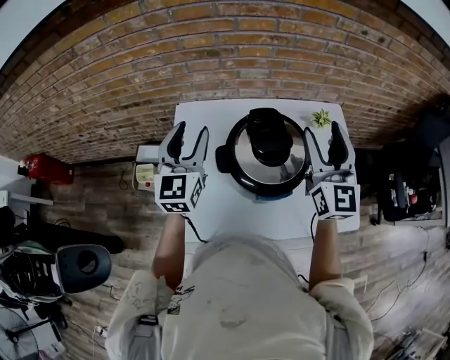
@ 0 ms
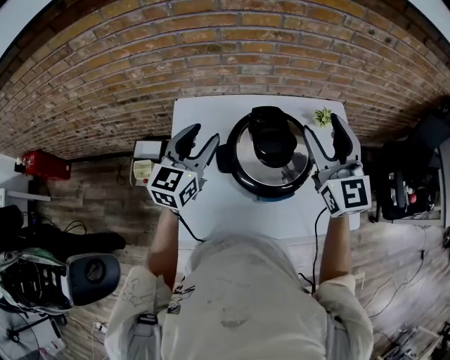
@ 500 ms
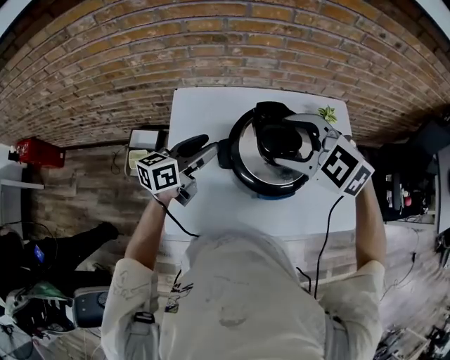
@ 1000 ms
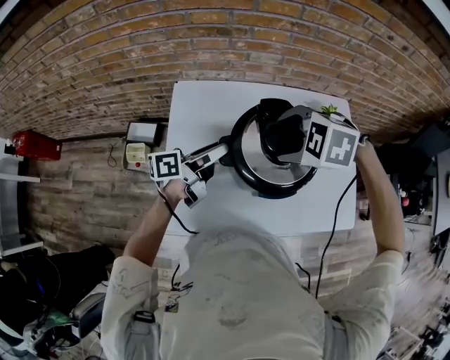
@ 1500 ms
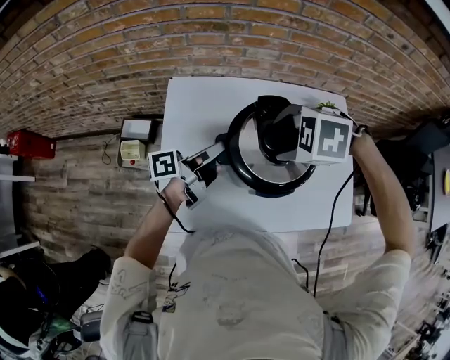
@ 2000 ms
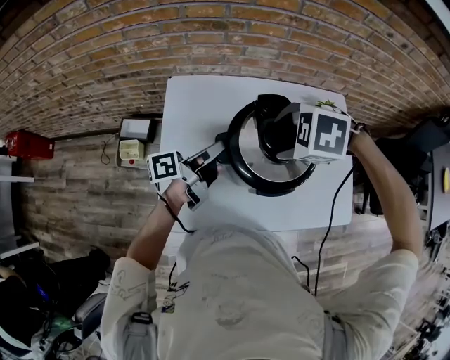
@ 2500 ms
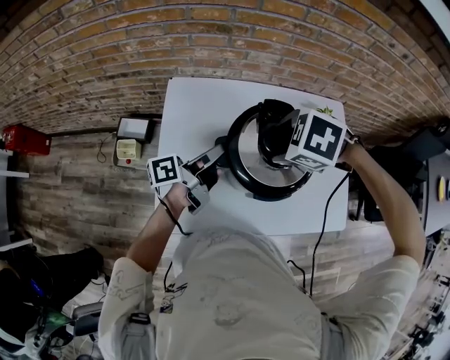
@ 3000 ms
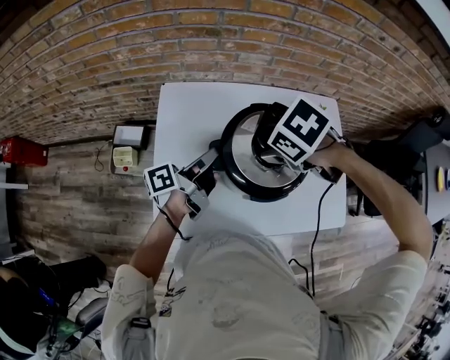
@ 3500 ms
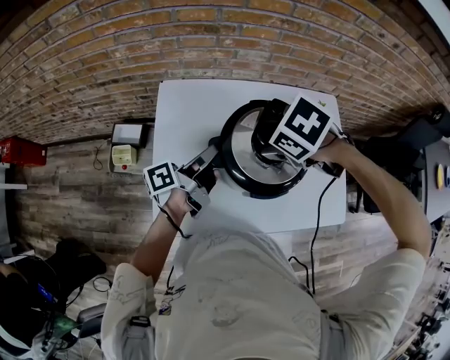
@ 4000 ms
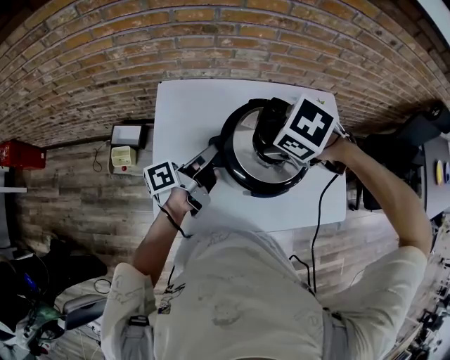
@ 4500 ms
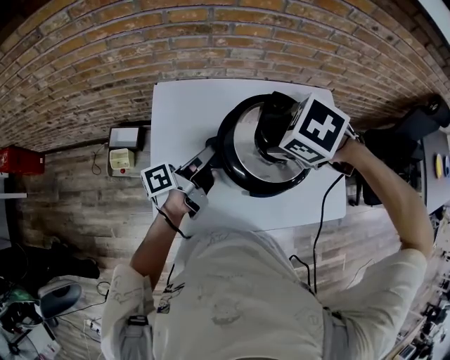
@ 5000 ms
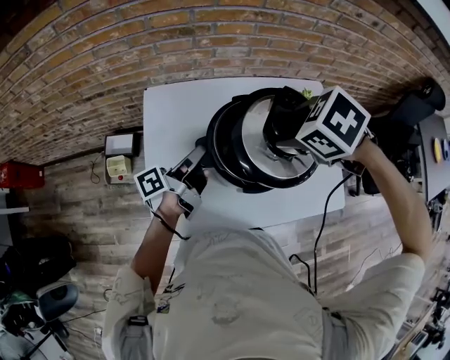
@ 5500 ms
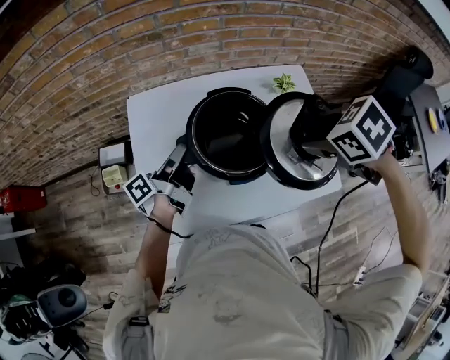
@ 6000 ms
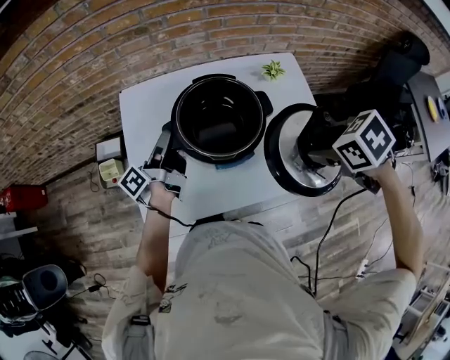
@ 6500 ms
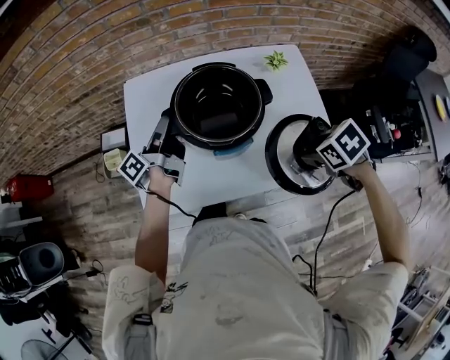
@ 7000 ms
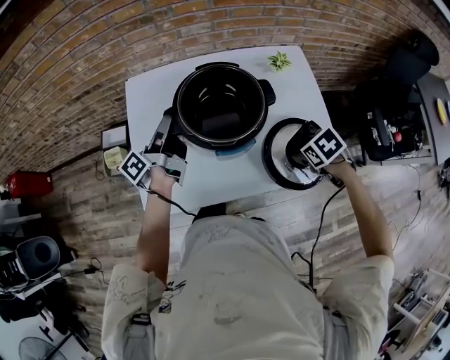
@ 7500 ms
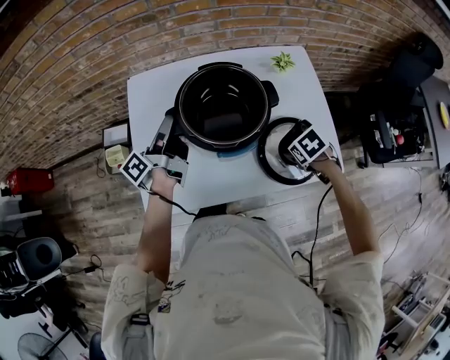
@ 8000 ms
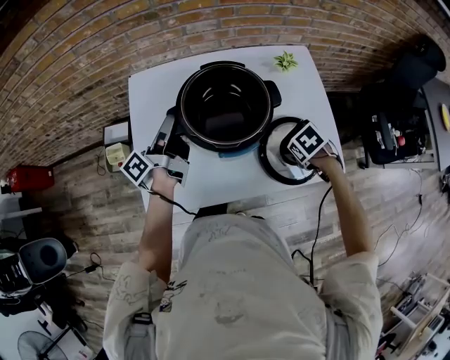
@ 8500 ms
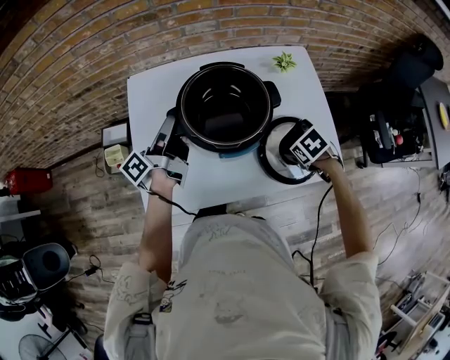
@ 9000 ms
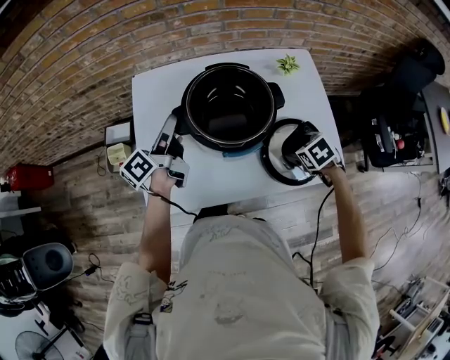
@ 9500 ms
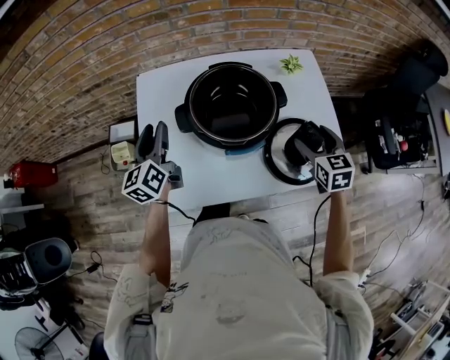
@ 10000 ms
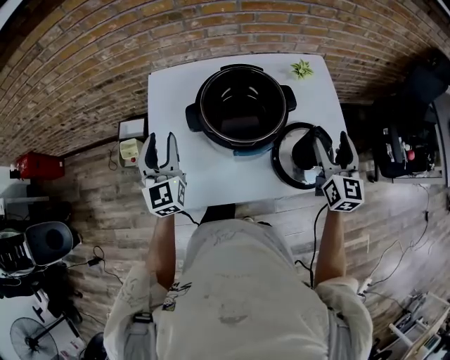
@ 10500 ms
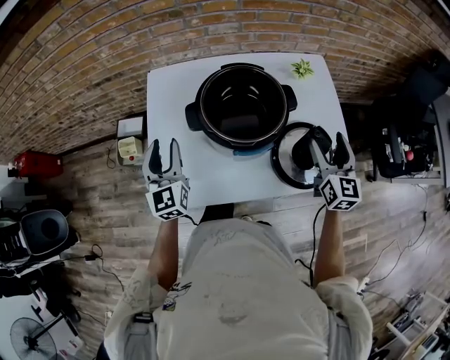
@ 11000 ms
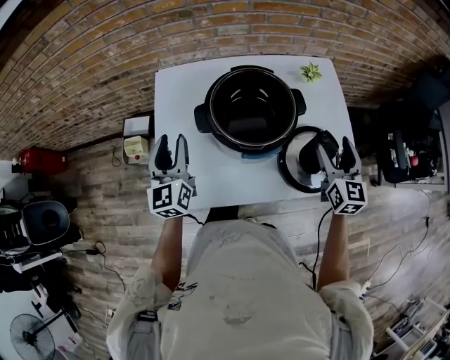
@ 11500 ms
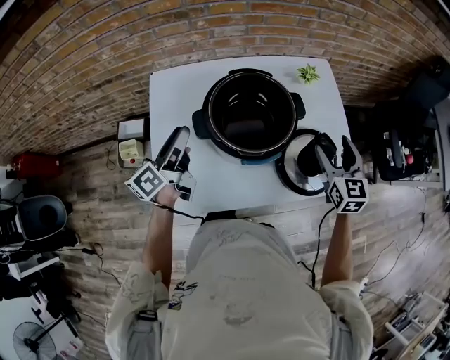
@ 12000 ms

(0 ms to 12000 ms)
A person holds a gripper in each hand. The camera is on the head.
0 ms - 2000 ms: The grippers both shift downward by approximately 15 cm. The left gripper twists approximately 80 degrees counterclockwise, seen from behind, and closes up, while the right gripper tilts its fingers approximately 80 degrees downward.
2000 ms - 4000 ms: The right gripper rotates about 30 degrees.
4000 ms - 6000 ms: The right gripper changes place by about 20 cm, and changes its angle by some 20 degrees.
6000 ms - 8000 ms: The right gripper travels downward by approximately 25 cm.
8000 ms - 10000 ms: The left gripper moves about 5 cm, rolls clockwise, seen from behind, by approximately 60 degrees, and opens its fingers, while the right gripper moves upward, about 10 cm, and tilts its fingers about 50 degrees upward.
10000 ms - 12000 ms: The left gripper changes its angle by some 40 degrees.

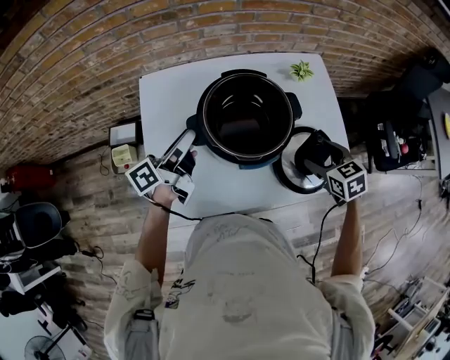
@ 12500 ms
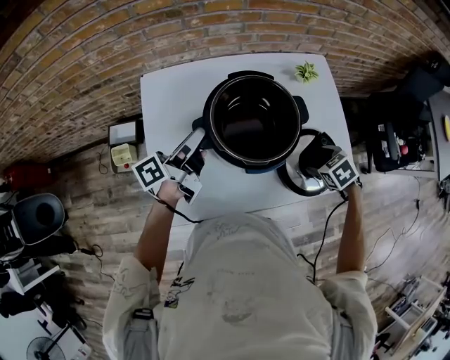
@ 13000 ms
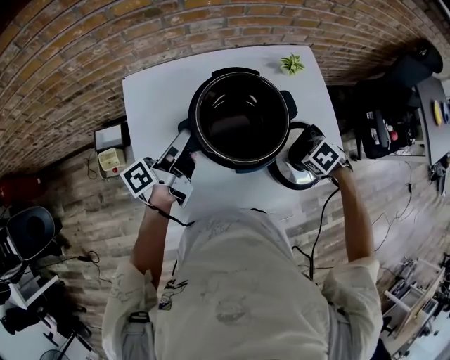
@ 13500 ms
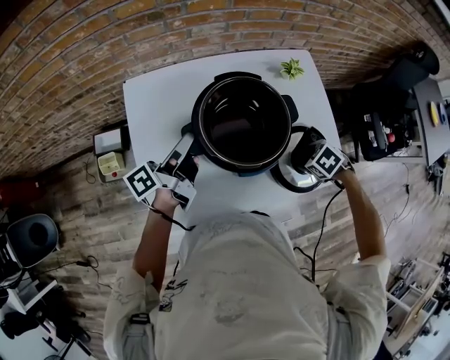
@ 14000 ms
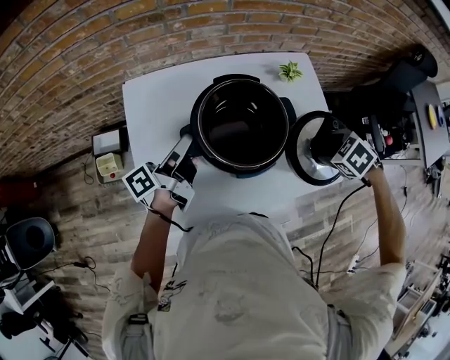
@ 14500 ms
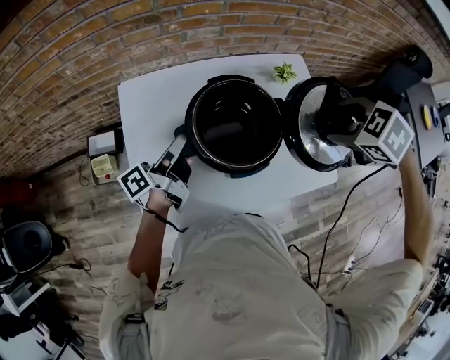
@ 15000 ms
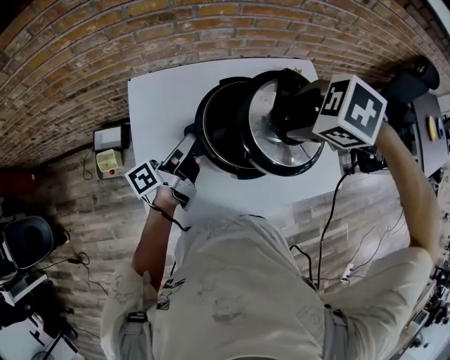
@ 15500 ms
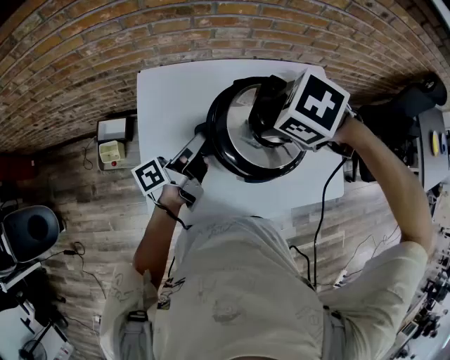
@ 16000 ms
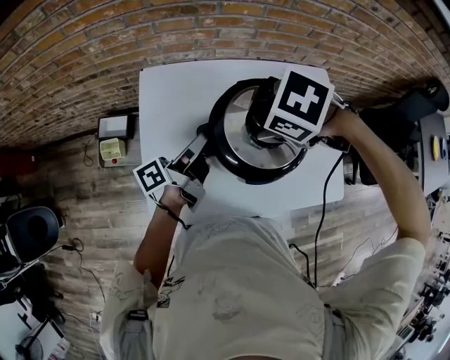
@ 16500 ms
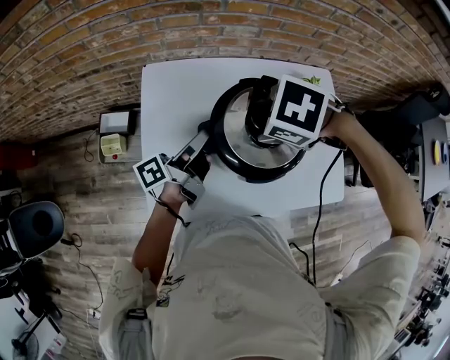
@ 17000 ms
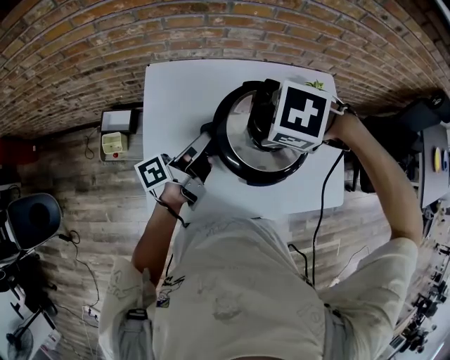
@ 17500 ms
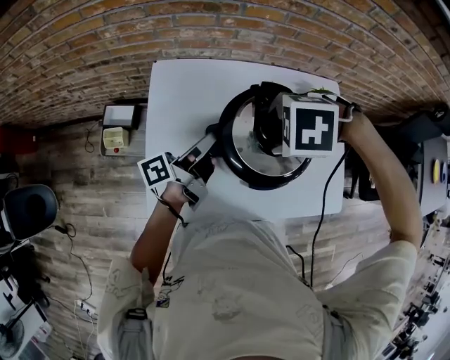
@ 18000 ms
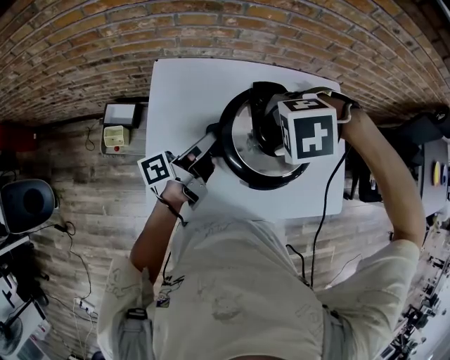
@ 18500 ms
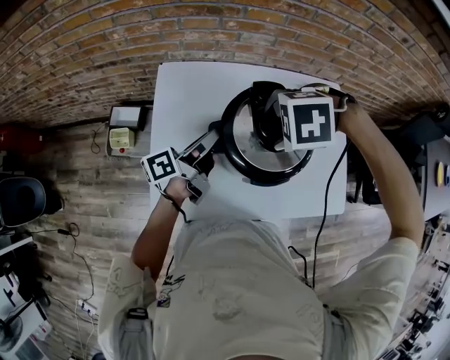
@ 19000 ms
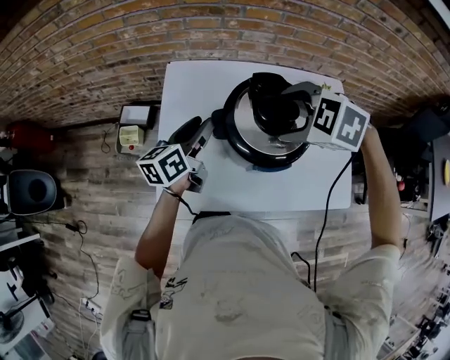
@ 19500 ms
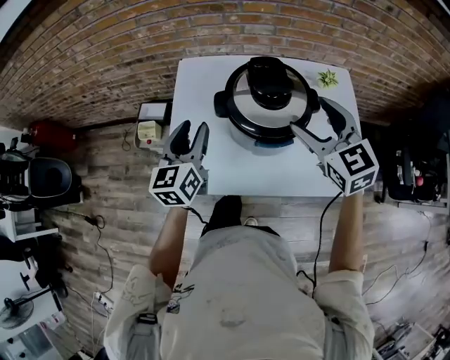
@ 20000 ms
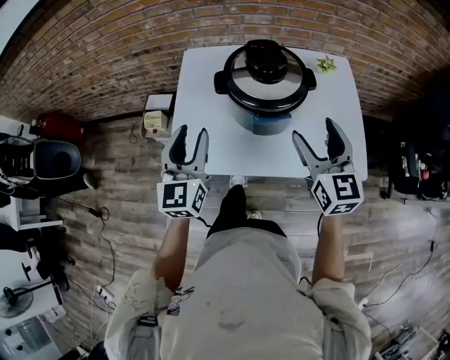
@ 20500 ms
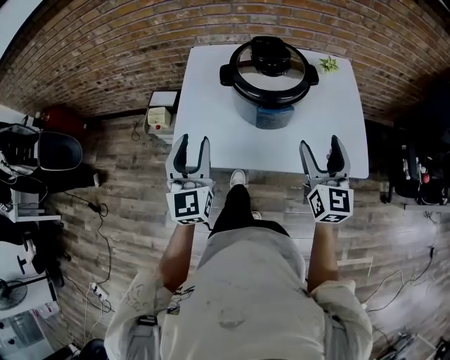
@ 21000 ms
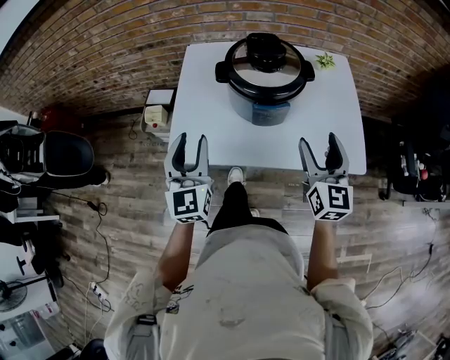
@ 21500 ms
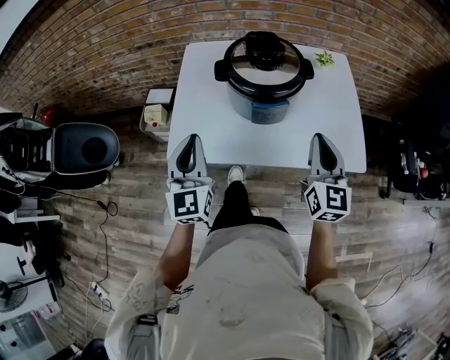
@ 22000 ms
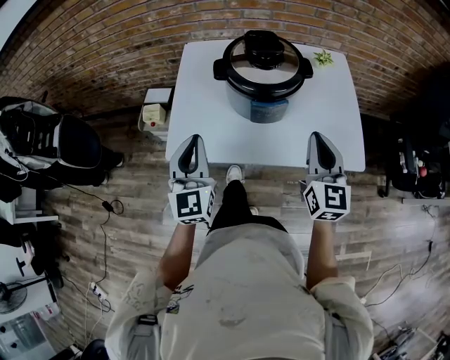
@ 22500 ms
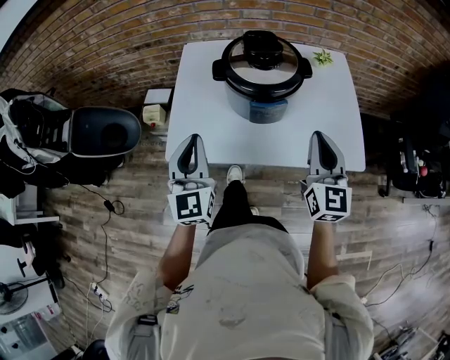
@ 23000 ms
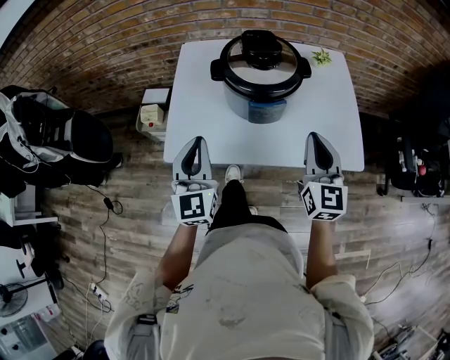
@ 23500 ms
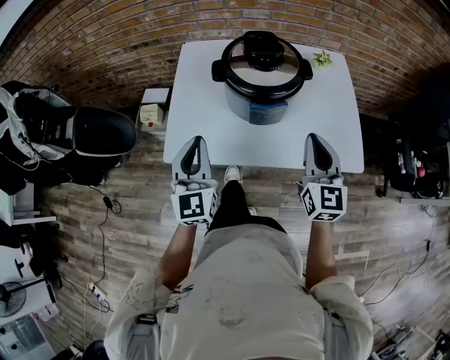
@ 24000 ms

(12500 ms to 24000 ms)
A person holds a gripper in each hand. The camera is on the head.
12500 ms - 14500 ms: The right gripper moves about 10 cm downward and comes back, and tips its fingers downward by approximately 30 degrees.
14500 ms - 16500 ms: The right gripper ends up about 30 cm from where it was, and turns by some 20 degrees.
16500 ms - 18500 ms: The right gripper swivels roughly 40 degrees.
18500 ms - 20000 ms: The right gripper shifts by about 10 cm, and angles its fingers upward, by some 60 degrees. Meanwhile the left gripper shifts by roughly 15 cm, and rotates around the line of its fingers by approximately 70 degrees, clockwise from behind.
20000 ms - 22000 ms: Both grippers move backward, roughly 15 cm. The right gripper rotates some 30 degrees, and closes up. The left gripper changes its angle by approximately 30 degrees, and closes its fingers.
22000 ms - 24000 ms: There are only small adjustments of the grippers.

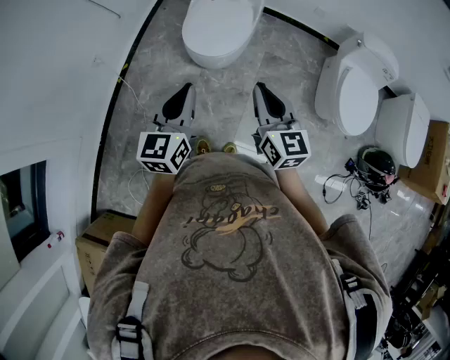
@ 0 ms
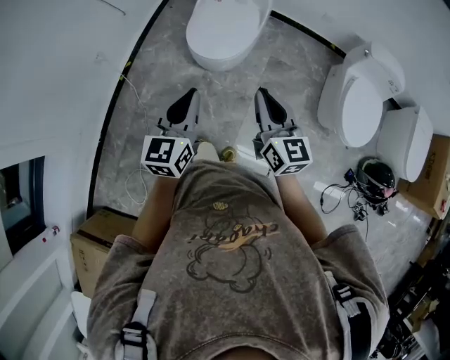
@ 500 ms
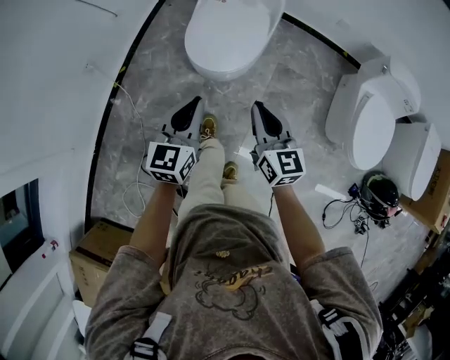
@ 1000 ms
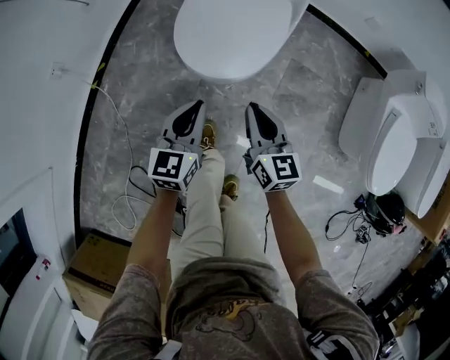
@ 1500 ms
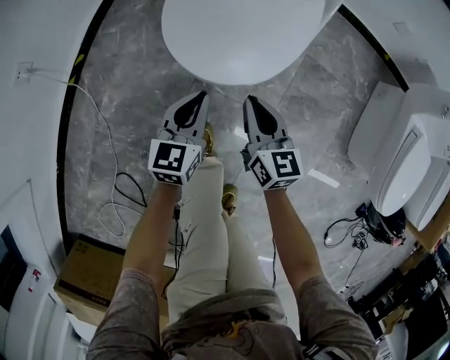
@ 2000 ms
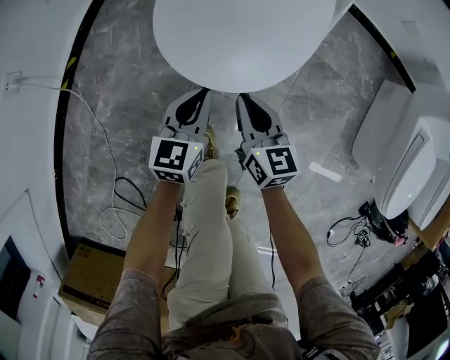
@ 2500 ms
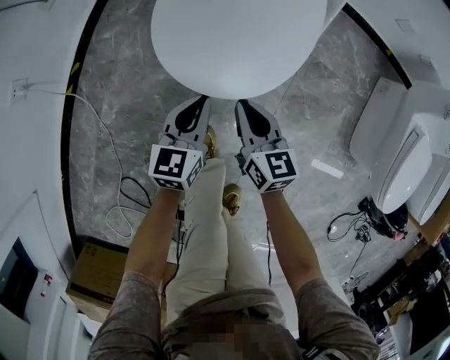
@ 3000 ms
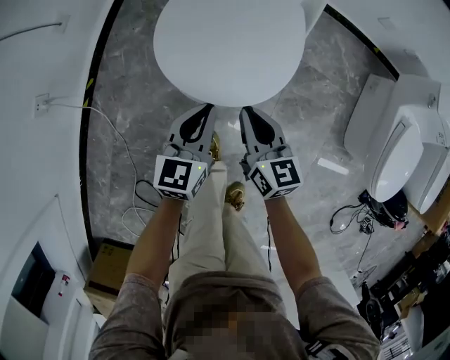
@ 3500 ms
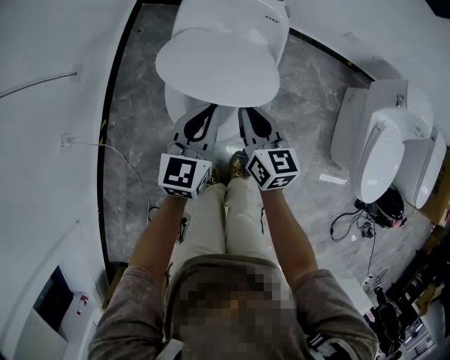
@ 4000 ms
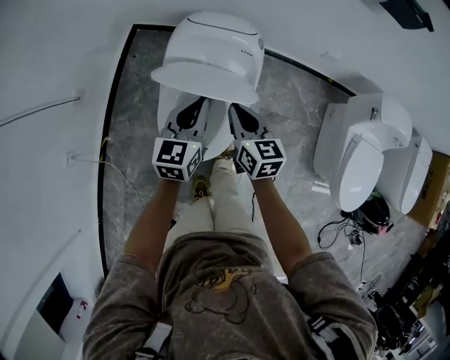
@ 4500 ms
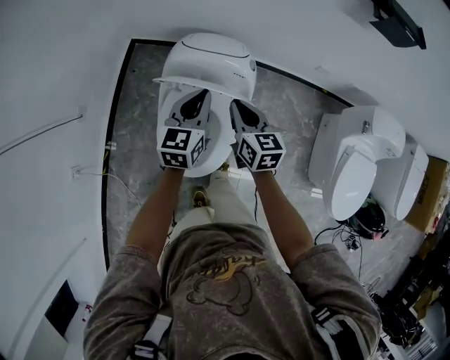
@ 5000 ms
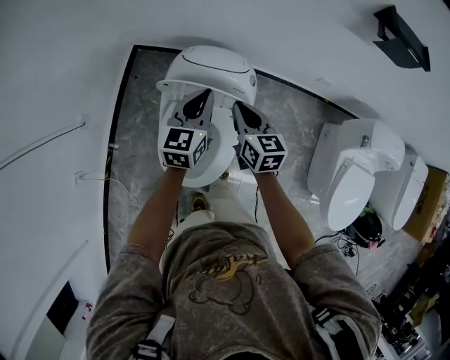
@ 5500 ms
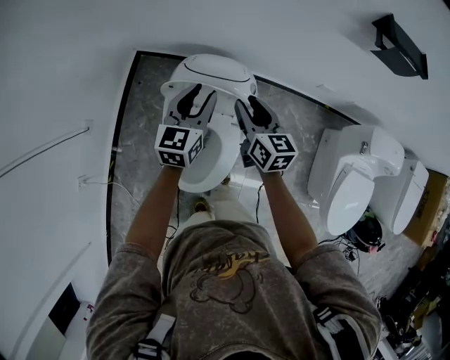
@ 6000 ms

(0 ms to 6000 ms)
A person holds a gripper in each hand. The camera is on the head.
0 ms - 2000 ms: The grippers both shift downward and forward by approximately 60 cm.
2000 ms - 4000 ms: The two grippers go some 30 cm upward and forward.
4000 ms - 6000 ms: The grippers both shift forward and upward by some 30 cm. The left gripper opens its fingers; the right gripper opens its fingers.
